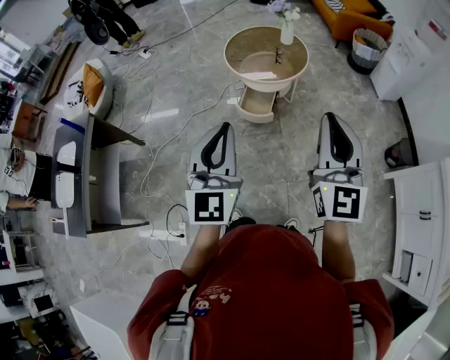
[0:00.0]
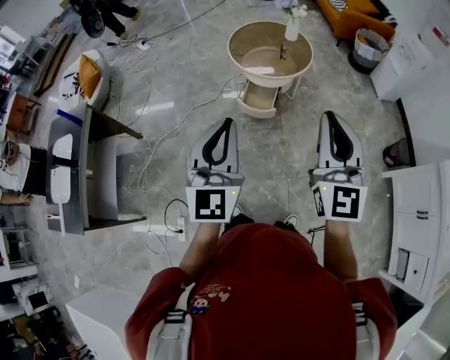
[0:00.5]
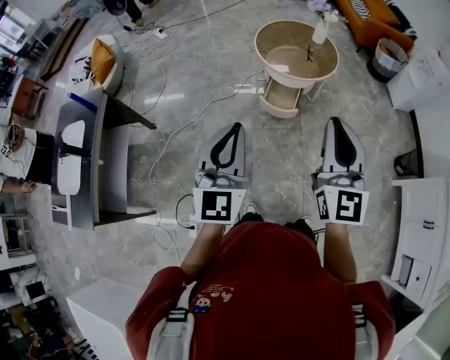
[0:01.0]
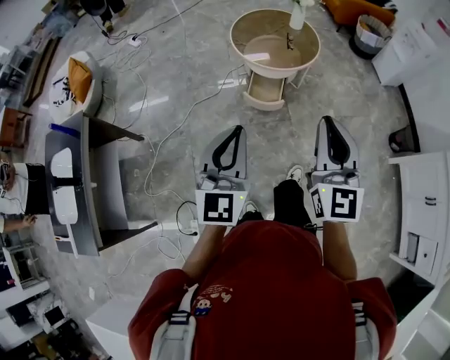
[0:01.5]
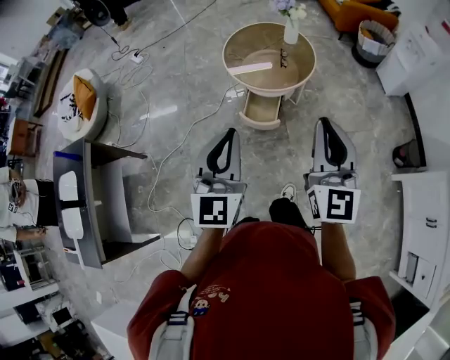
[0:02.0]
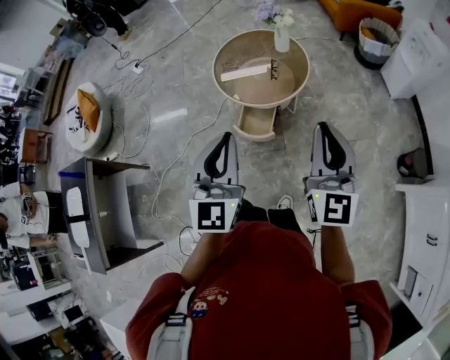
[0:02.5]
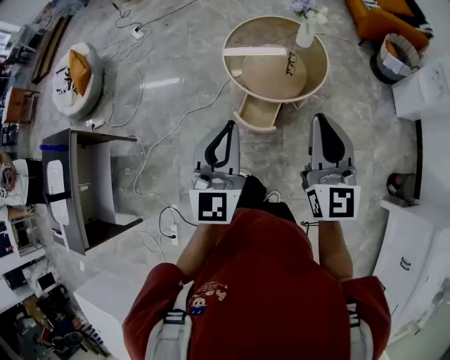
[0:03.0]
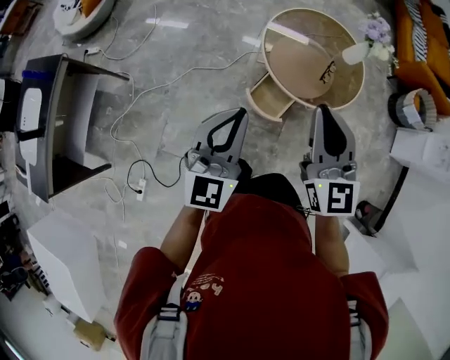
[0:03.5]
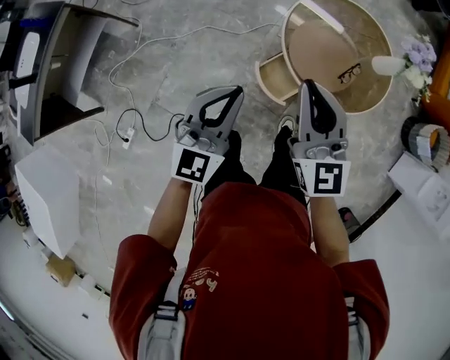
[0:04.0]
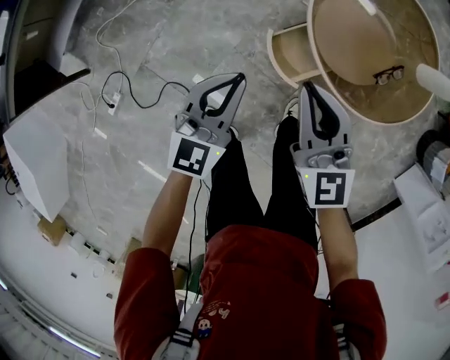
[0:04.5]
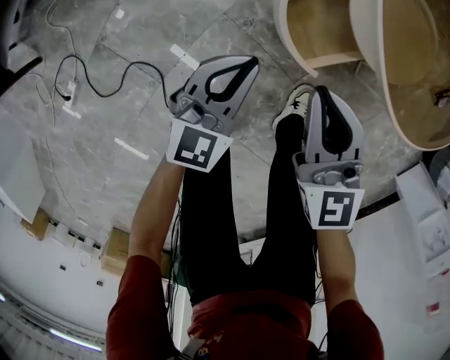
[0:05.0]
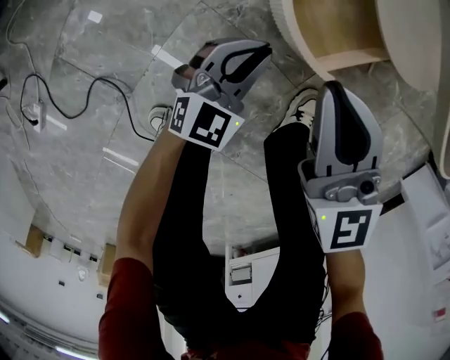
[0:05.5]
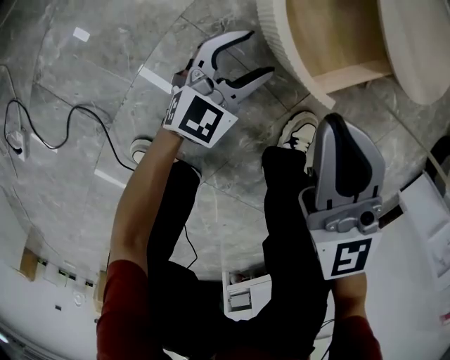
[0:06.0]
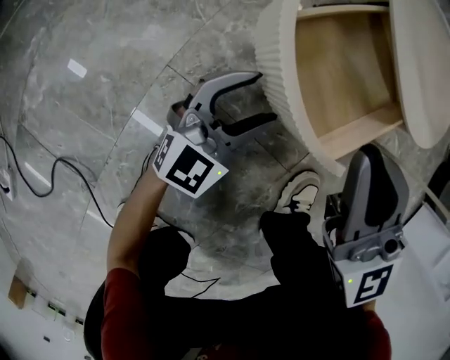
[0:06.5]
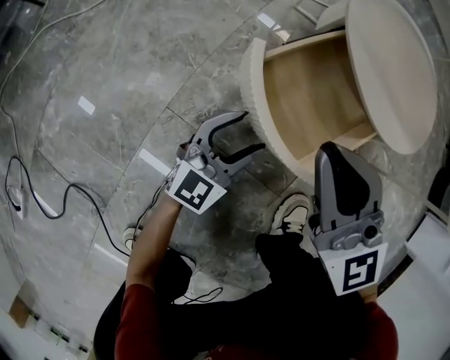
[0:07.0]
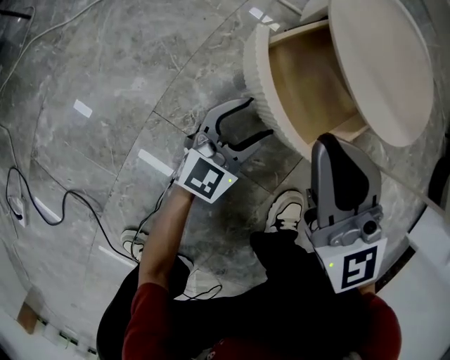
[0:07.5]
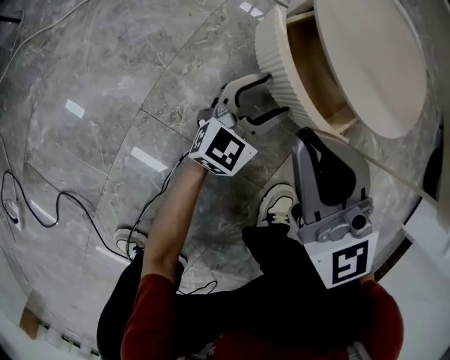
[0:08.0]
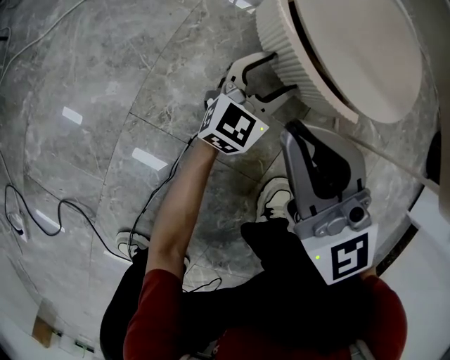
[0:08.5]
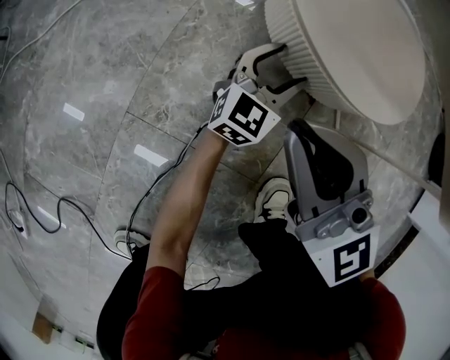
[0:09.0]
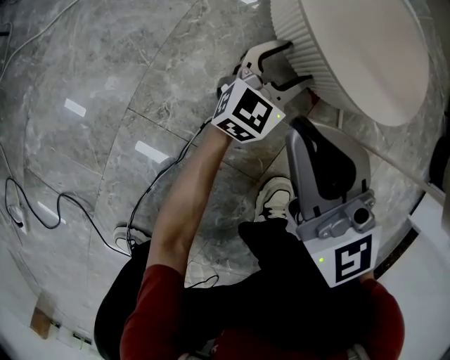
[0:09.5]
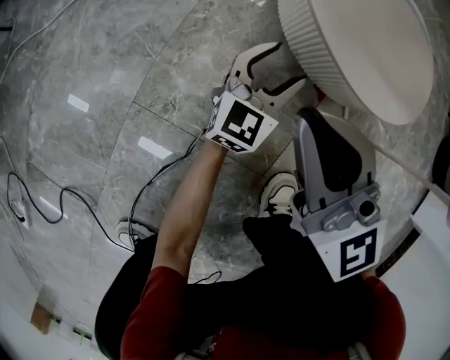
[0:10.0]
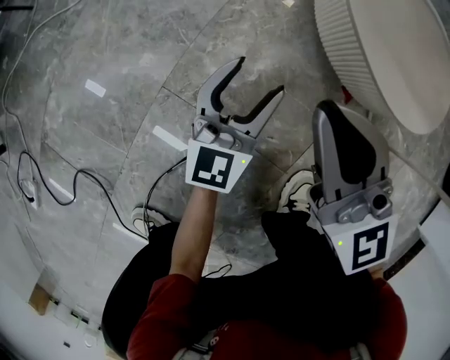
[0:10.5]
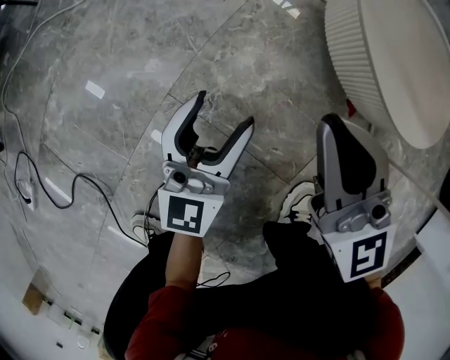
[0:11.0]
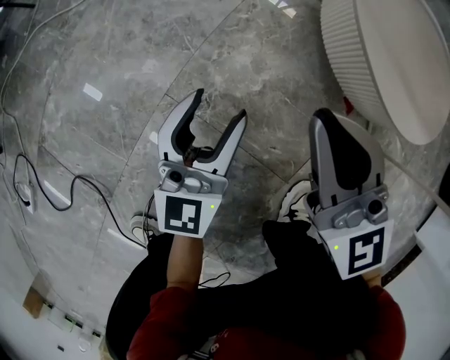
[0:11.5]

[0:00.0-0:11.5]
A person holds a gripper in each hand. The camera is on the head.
0:00.0 to 0:02.0: Both grippers travel together forward, about 15 cm. The right gripper moves about 20 cm to the left and comes back.
0:02.0 to 0:04.0: The right gripper moves some 40 cm, and rotates about 50 degrees, while the left gripper moves about 30 cm.
0:04.0 to 0:06.0: The grippers both shift downward by roughly 70 cm. The left gripper swivels about 30 degrees, and opens.
0:06.0 to 0:07.5: The right gripper heads forward, covering some 10 cm. Meanwhile the left gripper shifts about 10 cm forward and to the right.
0:07.5 to 0:09.5: The left gripper travels to the right and forward by roughly 15 cm.
0:09.5 to 0:11.5: The right gripper changes place by roughly 5 cm. The left gripper travels to the left by about 25 cm, and turns by some 30 degrees.

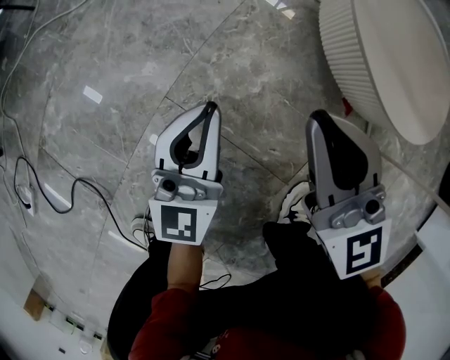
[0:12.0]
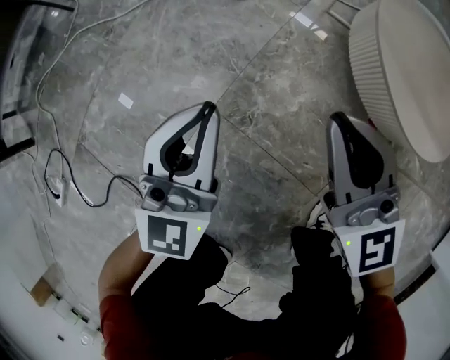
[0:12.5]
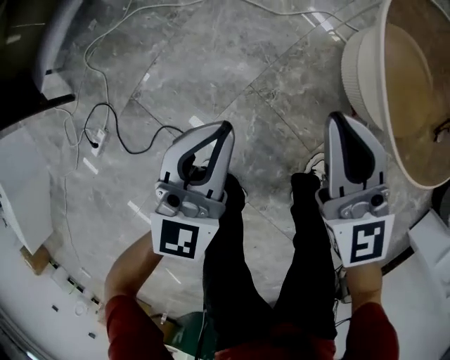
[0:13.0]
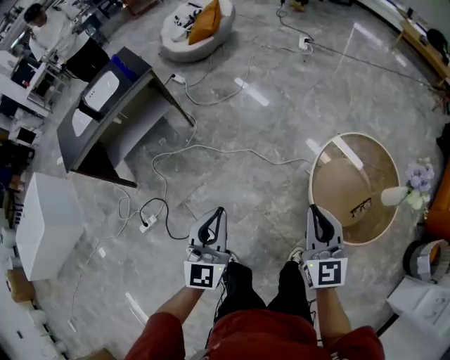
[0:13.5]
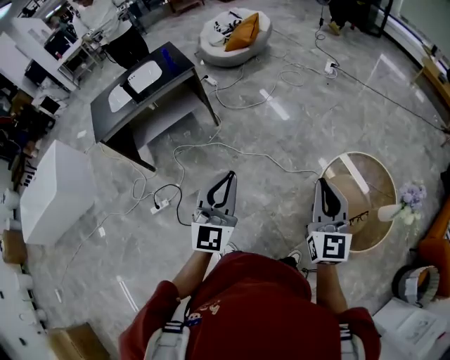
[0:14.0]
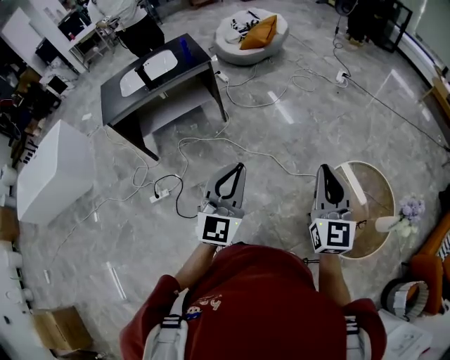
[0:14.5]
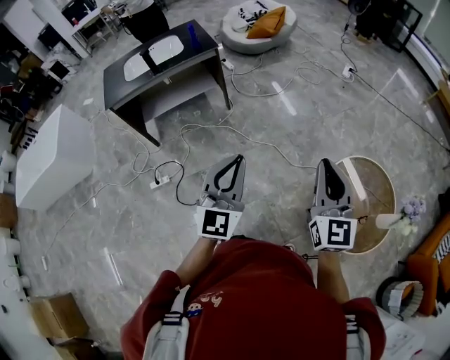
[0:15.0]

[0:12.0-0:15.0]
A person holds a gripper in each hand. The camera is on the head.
0:12.0 to 0:13.5: Both grippers move upward, some 70 cm.
0:13.5 to 0:15.0: Both grippers travel together upward and to the left, approximately 15 cm.

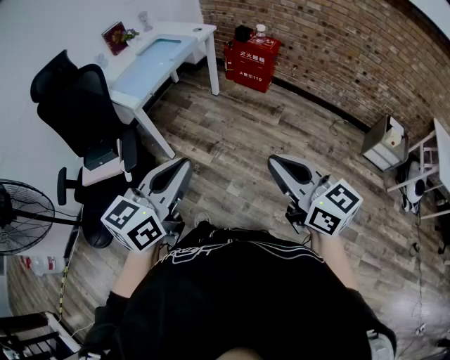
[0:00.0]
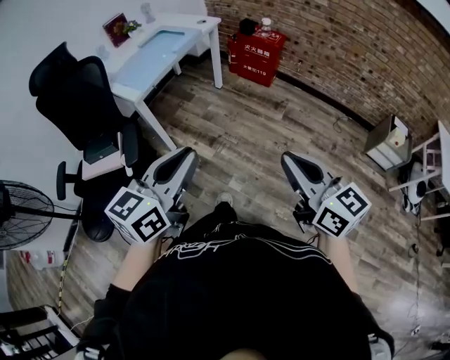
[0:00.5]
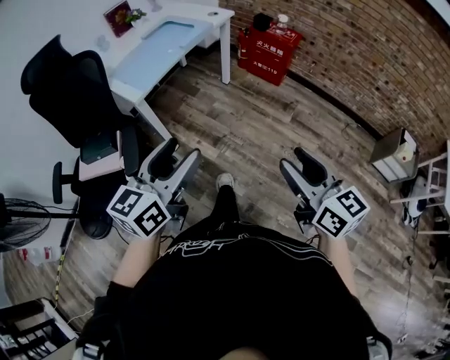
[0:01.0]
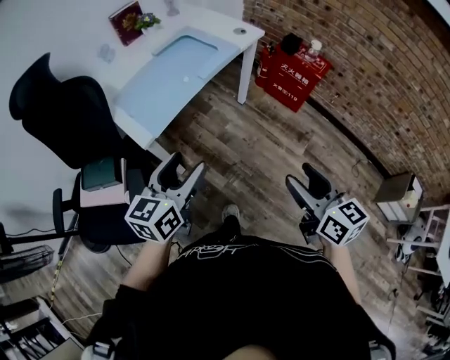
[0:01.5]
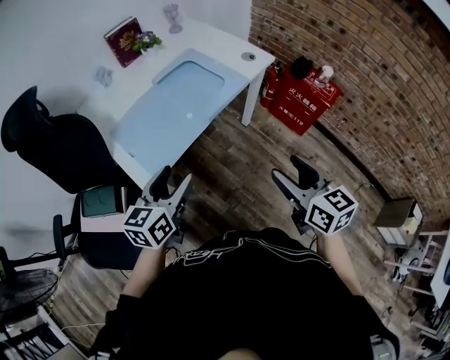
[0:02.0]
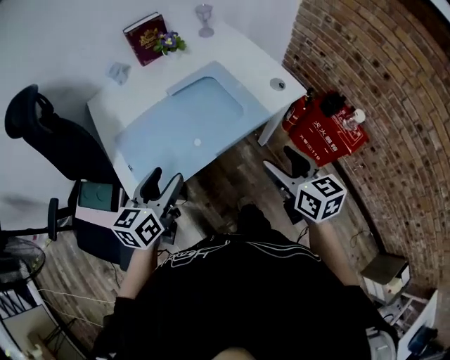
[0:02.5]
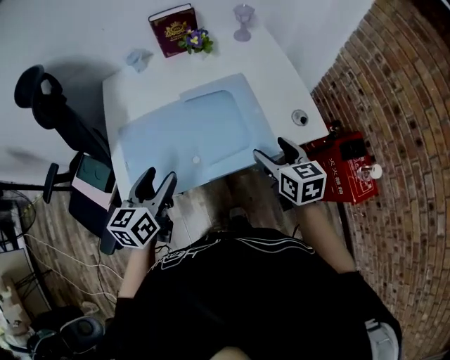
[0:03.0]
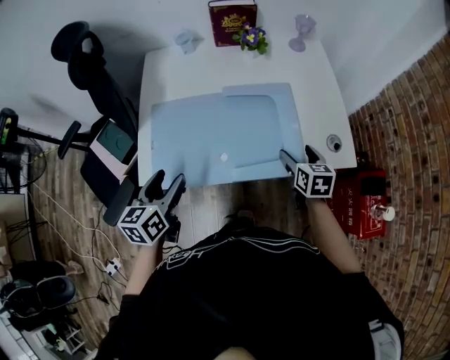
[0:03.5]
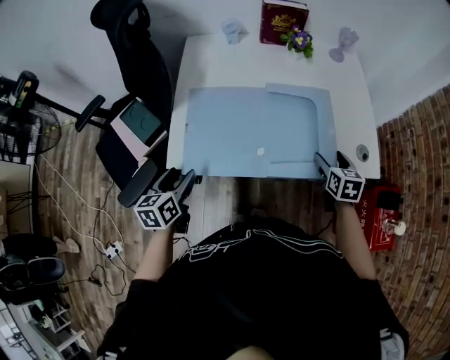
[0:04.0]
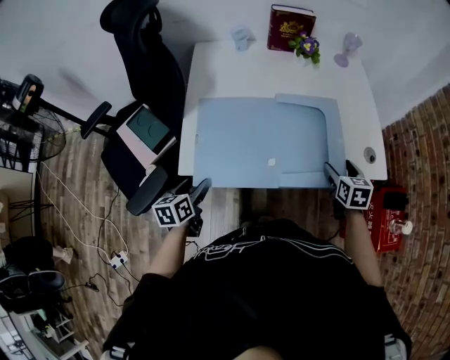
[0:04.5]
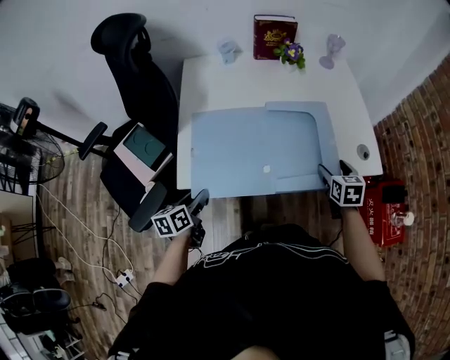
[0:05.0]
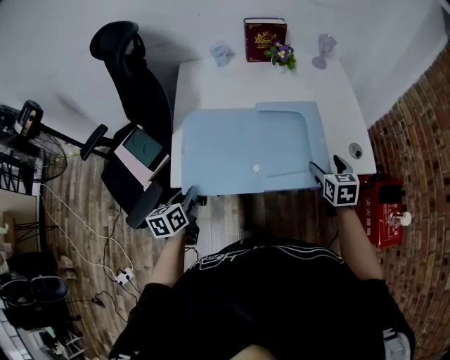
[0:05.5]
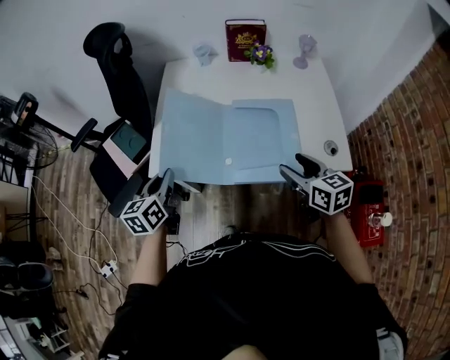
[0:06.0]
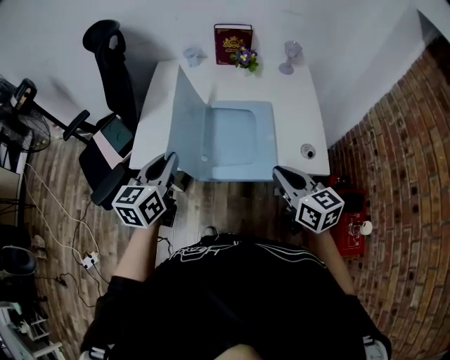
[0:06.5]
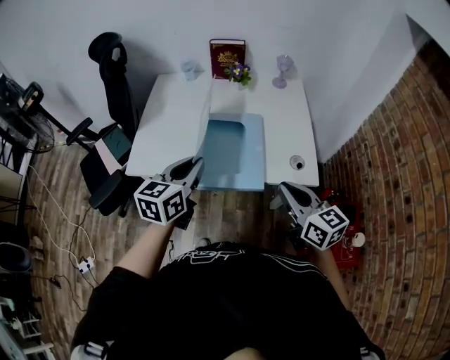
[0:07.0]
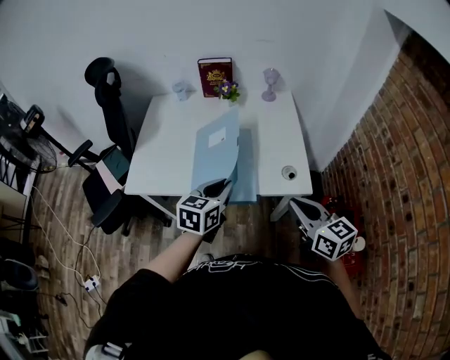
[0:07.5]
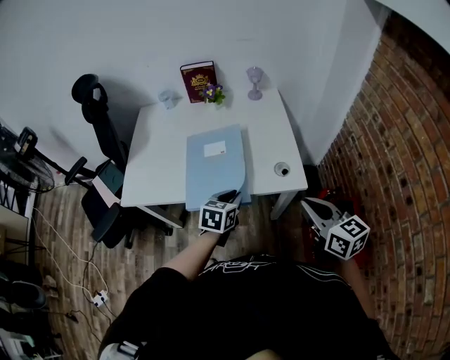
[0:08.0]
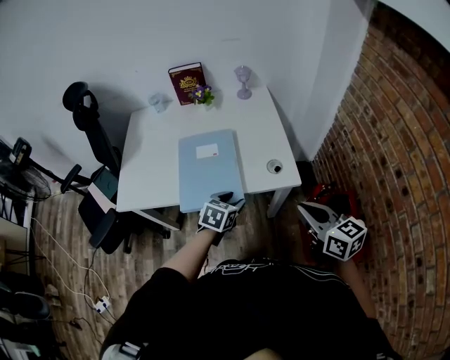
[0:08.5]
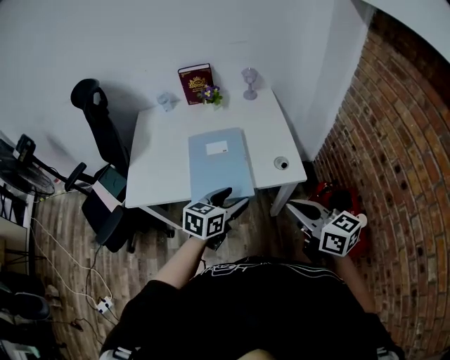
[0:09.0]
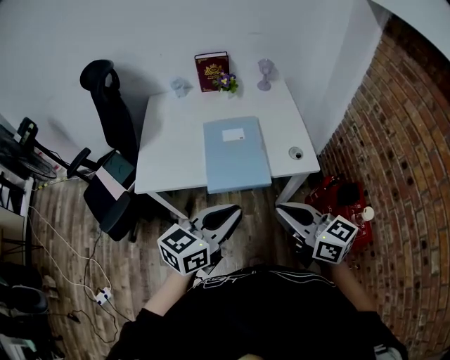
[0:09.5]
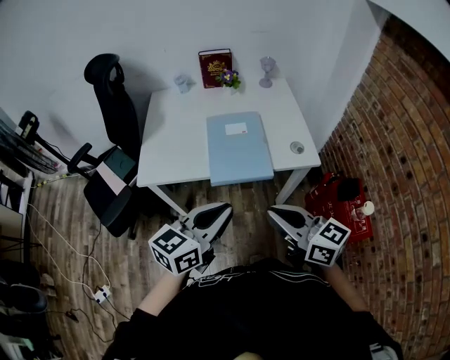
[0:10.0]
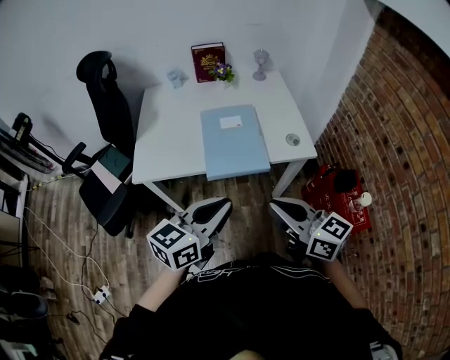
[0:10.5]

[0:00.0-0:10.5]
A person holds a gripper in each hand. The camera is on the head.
0:00.0 to 0:02.0: Both grippers are carried forward, approximately 50 cm. The right gripper opens its fingers. Meanwhile the left gripper changes its angle by approximately 30 degrees, and opens.
0:02.0 to 0:04.0: The left gripper changes place by approximately 15 cm, and turns by some 60 degrees; the right gripper ends up approximately 40 cm from where it was, and rotates roughly 40 degrees.
0:04.0 to 0:06.5: The left gripper ends up roughly 25 cm from where it was, turns by approximately 20 degrees, and closes up; the right gripper travels upward by approximately 15 cm, changes its angle by some 40 degrees, and closes up.
0:06.5 to 0:08.5: The left gripper goes about 35 cm to the right and downward, rotates some 40 degrees, and opens up. The right gripper travels to the right and backward by some 20 cm.
0:08.5 to 0:10.5: The right gripper moves to the left and backward, some 25 cm. The left gripper travels upward, backward and to the left by some 30 cm, points its fingers roughly 30 degrees further upward, and closes its fingers.

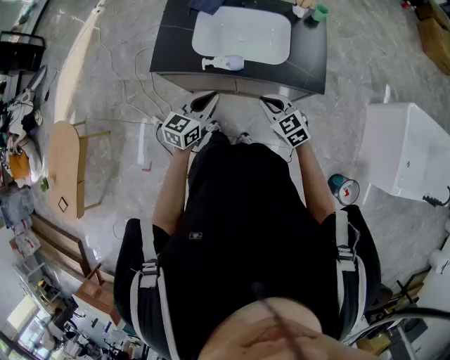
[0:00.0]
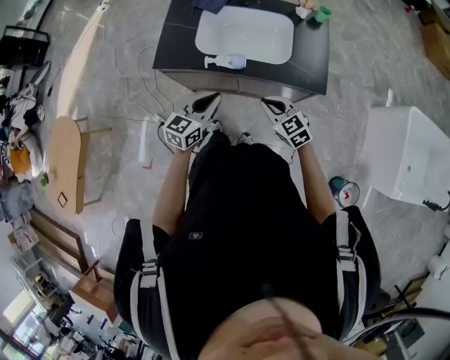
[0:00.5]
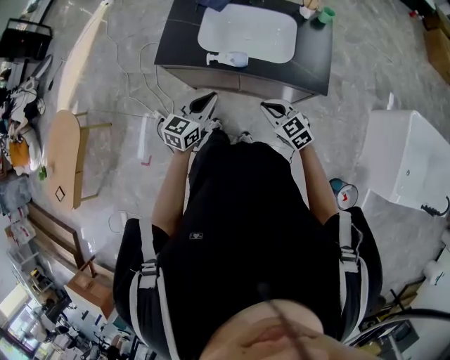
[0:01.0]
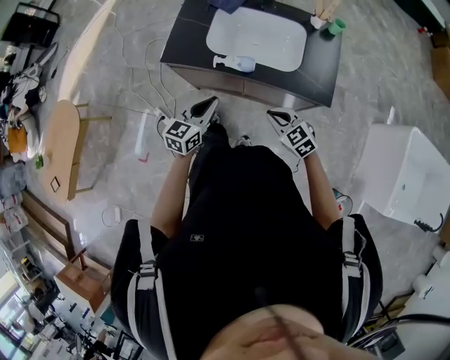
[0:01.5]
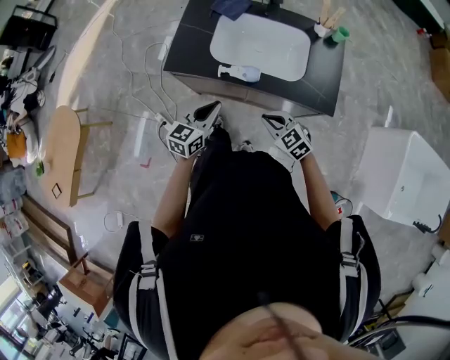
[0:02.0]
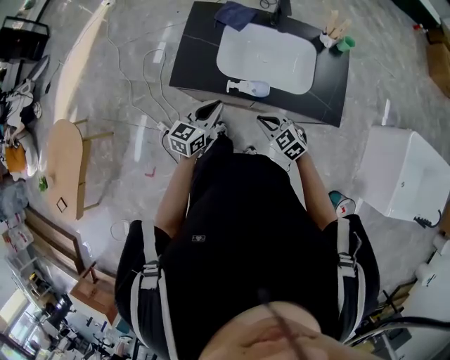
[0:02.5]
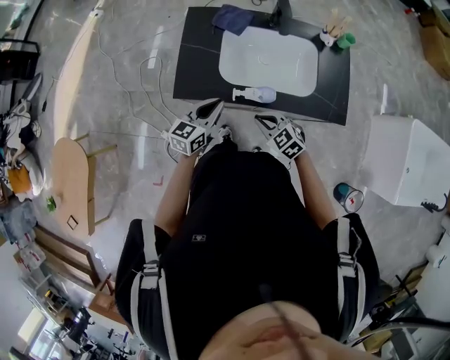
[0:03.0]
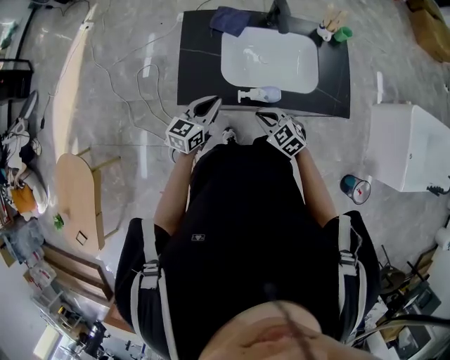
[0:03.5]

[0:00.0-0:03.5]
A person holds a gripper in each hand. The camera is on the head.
0:00.0 to 0:02.0: The grippers stay close to where they were, moving slightly.
0:02.0 to 0:03.5: The left gripper travels forward and to the left by approximately 20 cm, while the right gripper shifts roughly 15 cm to the left and forward.
